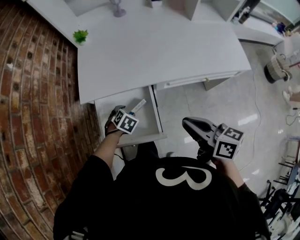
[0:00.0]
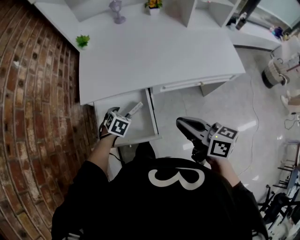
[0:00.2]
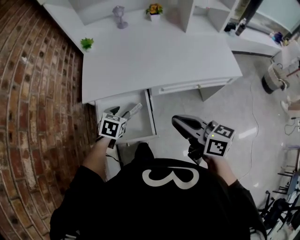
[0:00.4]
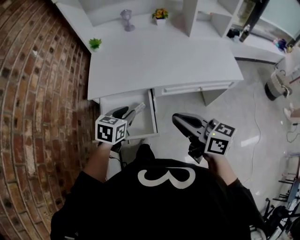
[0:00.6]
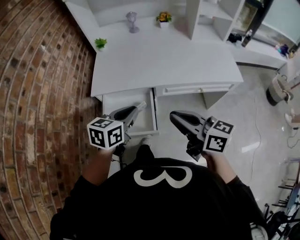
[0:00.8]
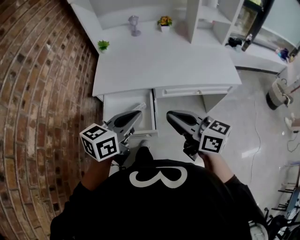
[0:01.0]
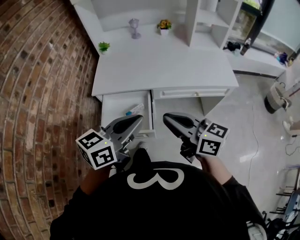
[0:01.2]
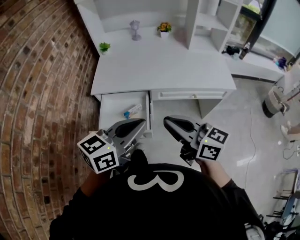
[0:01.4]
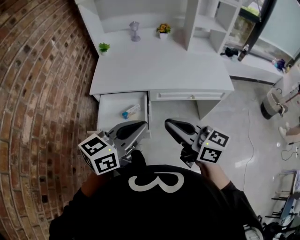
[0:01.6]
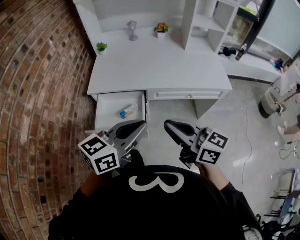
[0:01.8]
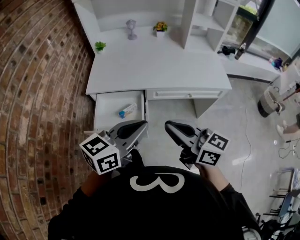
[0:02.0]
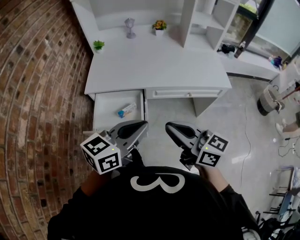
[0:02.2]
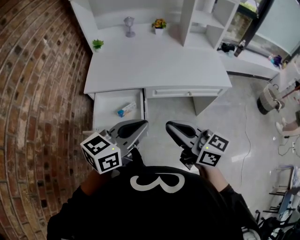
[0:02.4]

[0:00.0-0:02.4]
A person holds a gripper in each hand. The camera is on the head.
0:00.0 to 0:01.2: The right gripper goes roughly 15 cm upward and backward, and swivels some 30 degrees. Meanwhile the left gripper travels upward and backward by about 40 cm, angles its fingers upward, by approximately 60 degrees, and closes its fingers.
0:01.2 to 0:02.4: The grippers make only small movements.

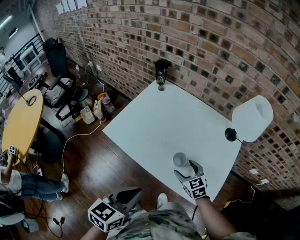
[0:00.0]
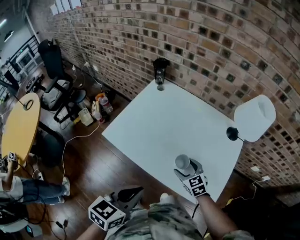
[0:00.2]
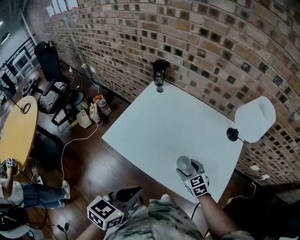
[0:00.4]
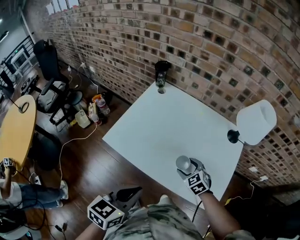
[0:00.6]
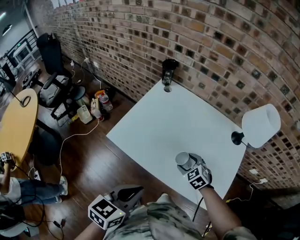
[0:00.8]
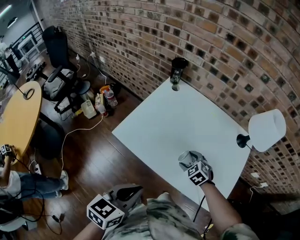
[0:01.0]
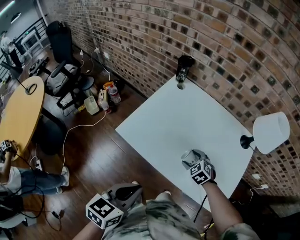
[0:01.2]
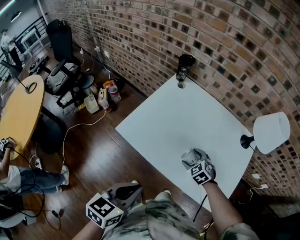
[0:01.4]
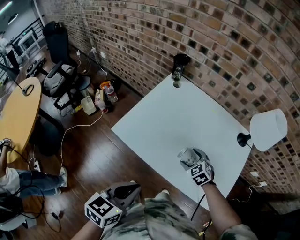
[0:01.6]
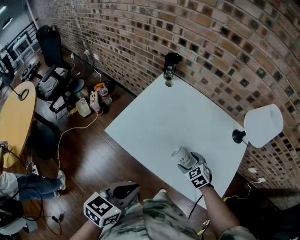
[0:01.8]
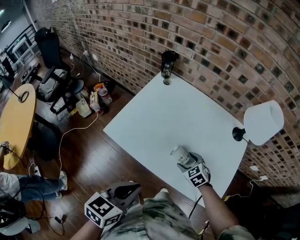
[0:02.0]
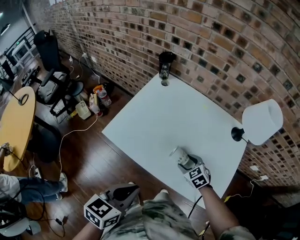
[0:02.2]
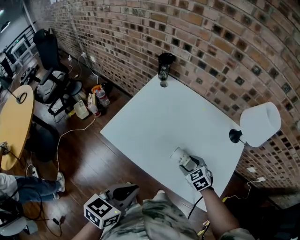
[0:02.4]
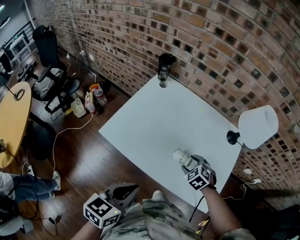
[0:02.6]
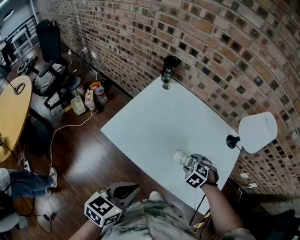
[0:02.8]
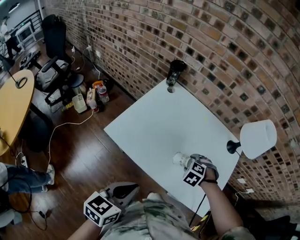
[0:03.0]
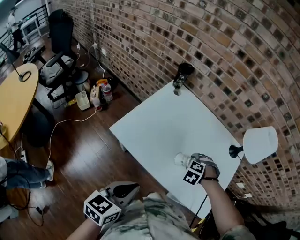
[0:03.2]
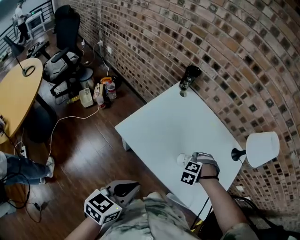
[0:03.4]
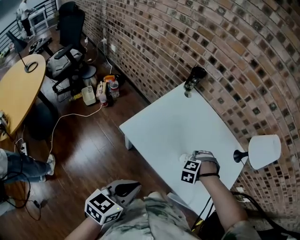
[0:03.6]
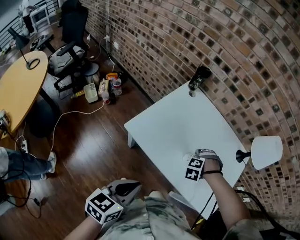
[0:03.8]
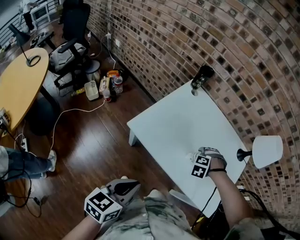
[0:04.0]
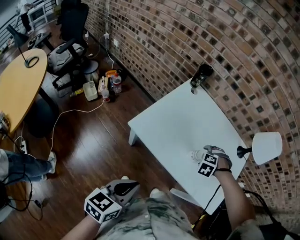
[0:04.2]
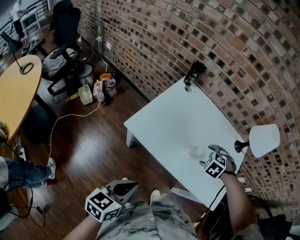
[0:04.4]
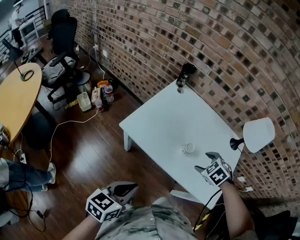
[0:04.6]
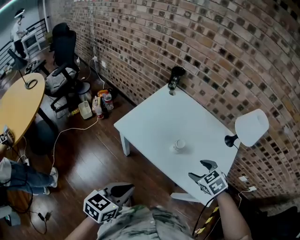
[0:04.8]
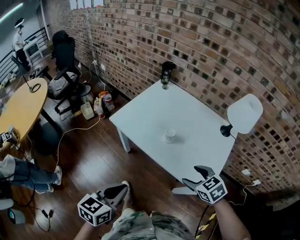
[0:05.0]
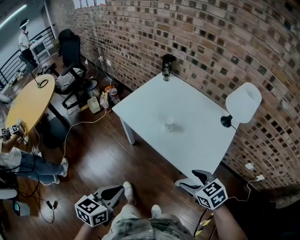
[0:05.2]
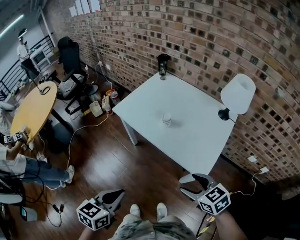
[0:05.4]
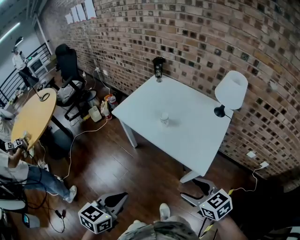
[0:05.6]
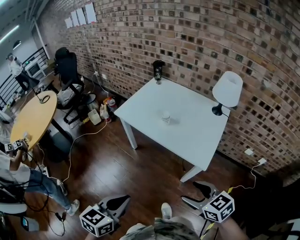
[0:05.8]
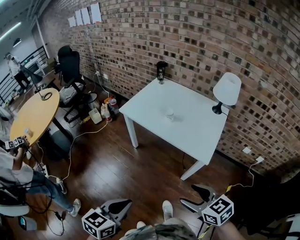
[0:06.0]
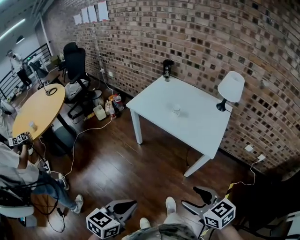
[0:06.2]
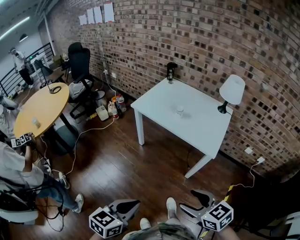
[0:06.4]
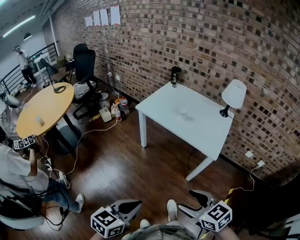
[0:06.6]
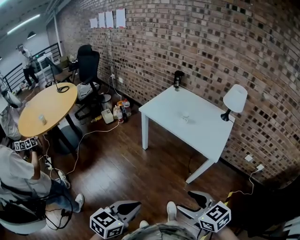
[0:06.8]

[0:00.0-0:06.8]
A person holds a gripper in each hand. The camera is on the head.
0:00.0 to 0:01.4: The right gripper is displaced to the left and forward by some 10 cm, and turns by approximately 30 degrees, while the left gripper moves to the left, about 10 cm.
0:01.4 to 0:02.8: The right gripper moves to the right, some 10 cm, and turns by some 20 degrees.
0:02.8 to 0:04.0: The left gripper moves approximately 15 cm. The right gripper moves some 10 cm, and swivels approximately 40 degrees.
0:04.0 to 0:05.4: The right gripper moves some 40 cm, and tips its fingers upward by approximately 30 degrees, while the left gripper moves some 35 cm.
0:05.4 to 0:06.8: The right gripper is displaced backward, to the left and upward by some 35 cm. The left gripper goes approximately 30 cm backward and to the left.

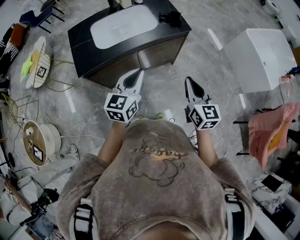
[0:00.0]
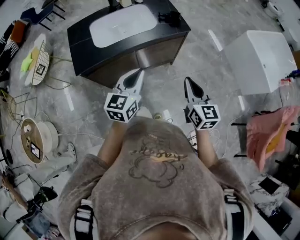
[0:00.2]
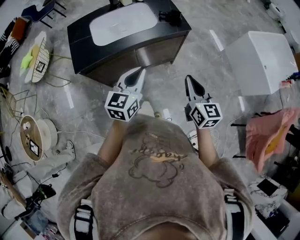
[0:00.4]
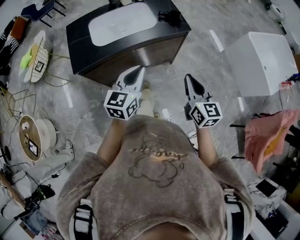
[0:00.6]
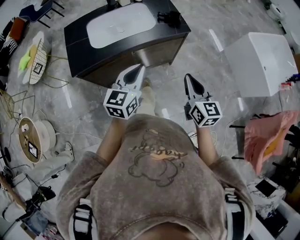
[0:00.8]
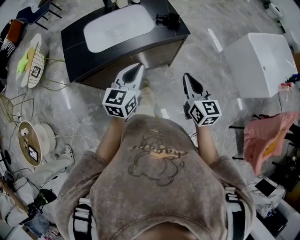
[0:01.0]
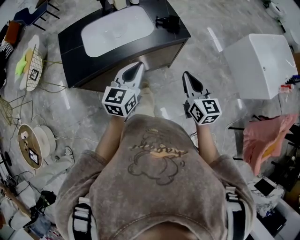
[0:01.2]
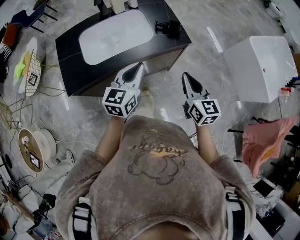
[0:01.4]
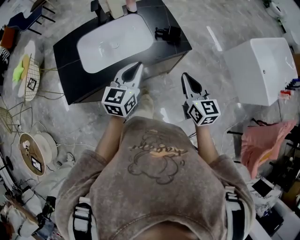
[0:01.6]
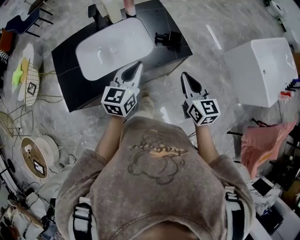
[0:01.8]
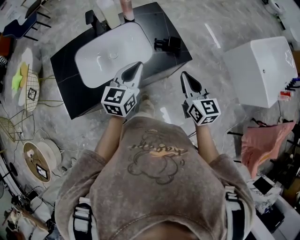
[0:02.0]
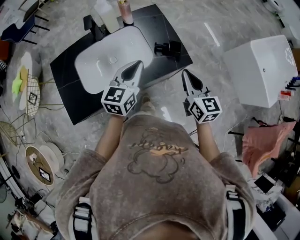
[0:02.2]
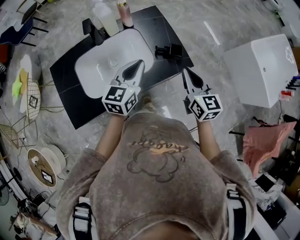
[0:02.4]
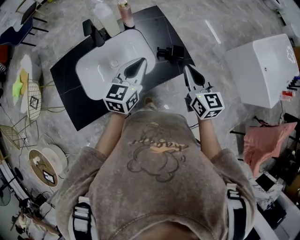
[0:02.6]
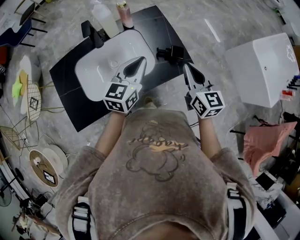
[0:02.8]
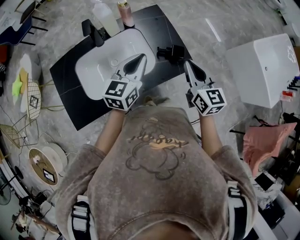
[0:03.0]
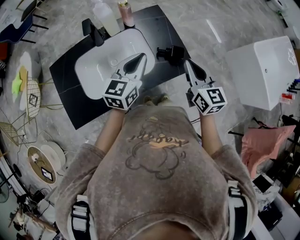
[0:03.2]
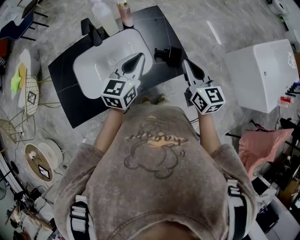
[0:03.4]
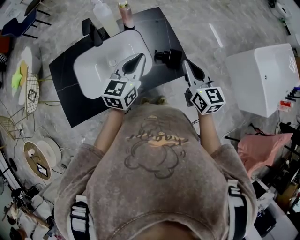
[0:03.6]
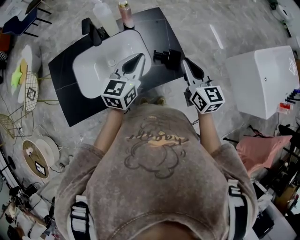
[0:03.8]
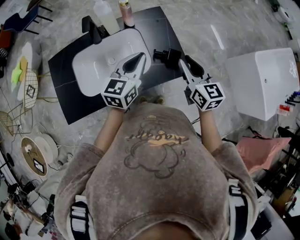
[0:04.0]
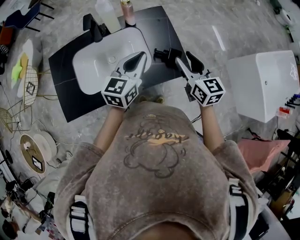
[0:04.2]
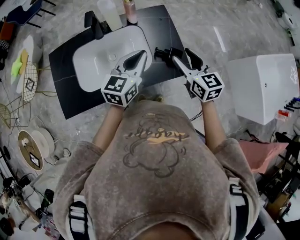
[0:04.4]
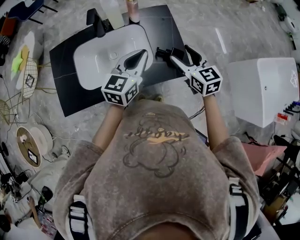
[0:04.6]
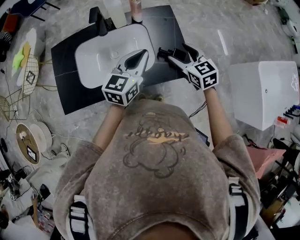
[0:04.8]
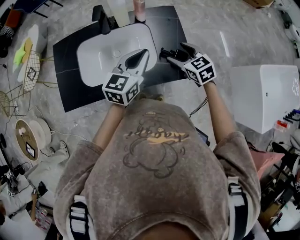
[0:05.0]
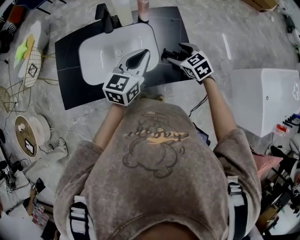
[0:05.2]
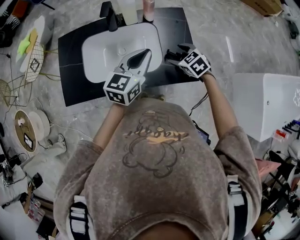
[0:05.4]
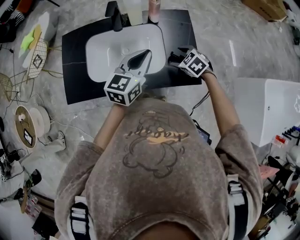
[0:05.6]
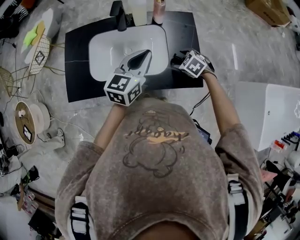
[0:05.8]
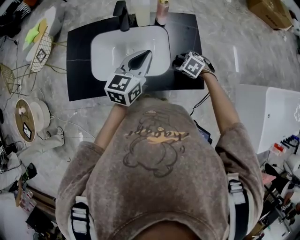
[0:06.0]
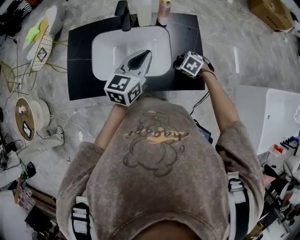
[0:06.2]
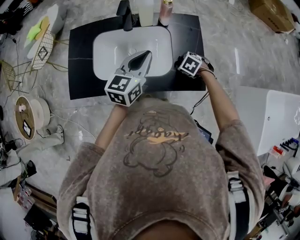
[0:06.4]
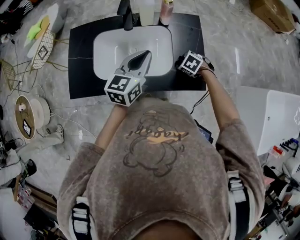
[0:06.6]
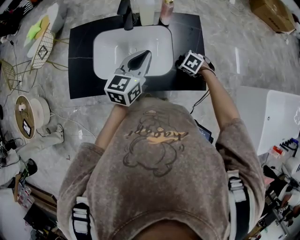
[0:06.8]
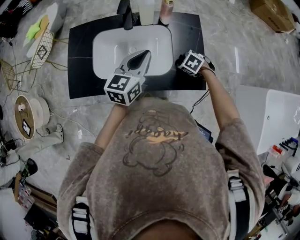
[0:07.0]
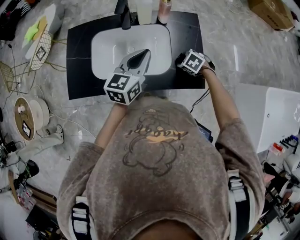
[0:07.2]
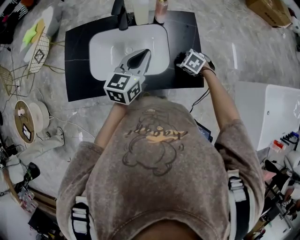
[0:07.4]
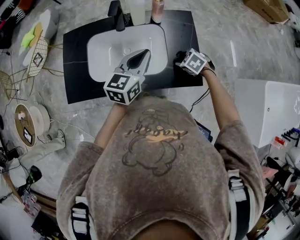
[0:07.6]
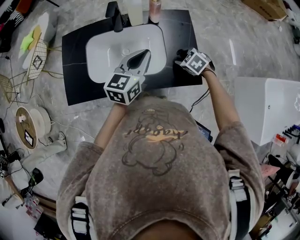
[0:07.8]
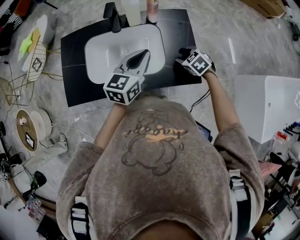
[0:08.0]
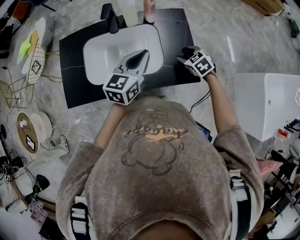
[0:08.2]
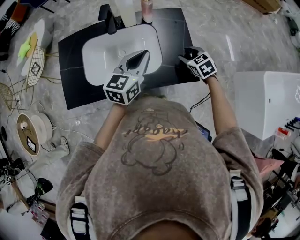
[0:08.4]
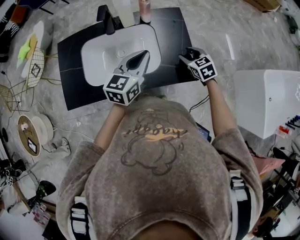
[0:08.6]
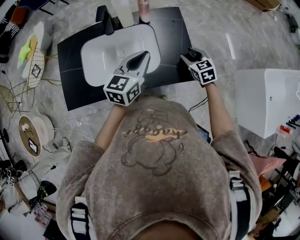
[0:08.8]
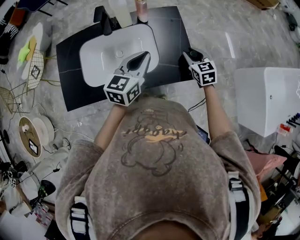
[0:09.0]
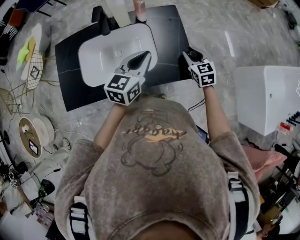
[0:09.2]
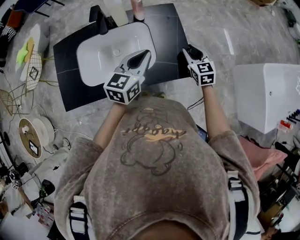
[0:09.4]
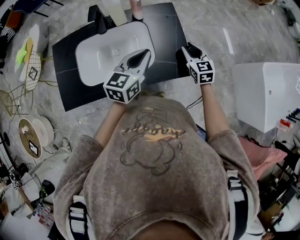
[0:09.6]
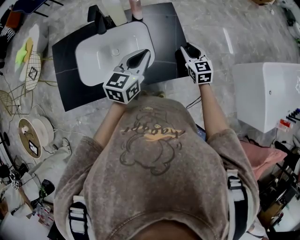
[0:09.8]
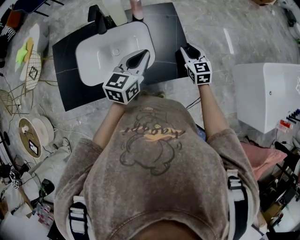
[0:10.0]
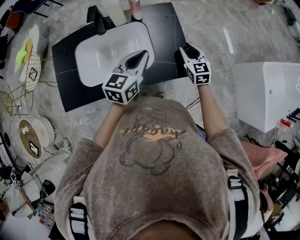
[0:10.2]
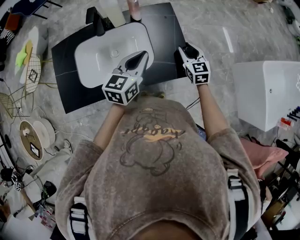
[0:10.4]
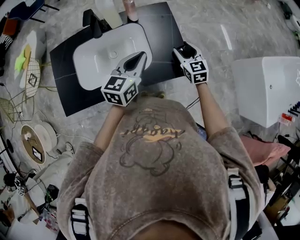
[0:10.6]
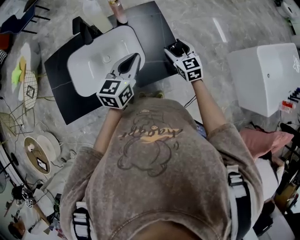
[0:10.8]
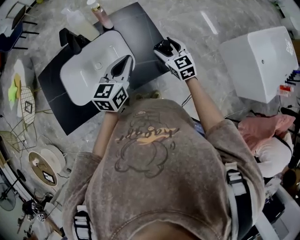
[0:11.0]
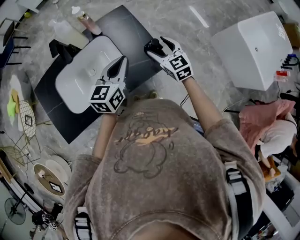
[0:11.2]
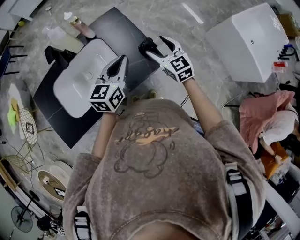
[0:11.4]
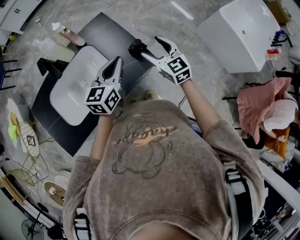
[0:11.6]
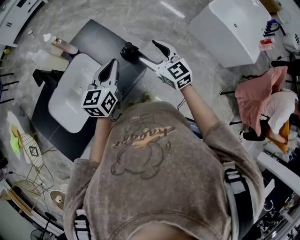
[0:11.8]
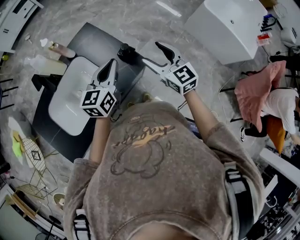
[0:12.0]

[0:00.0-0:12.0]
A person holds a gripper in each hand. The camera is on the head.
0:00.0 to 0:01.6: Both grippers travel together forward, roughly 20 cm.
0:01.6 to 0:03.0: The grippers both shift forward by approximately 20 cm.
0:03.0 to 0:04.4: The right gripper travels forward by about 5 cm, and opens its fingers.
0:04.4 to 0:06.0: The left gripper changes place by roughly 5 cm; the right gripper travels downward by approximately 20 cm, and tips its fingers downward by roughly 50 degrees.
0:06.0 to 0:07.6: The grippers make only small movements.
0:07.6 to 0:09.0: The left gripper moves roughly 5 cm. The right gripper shifts about 10 cm to the right and upward, and tilts its fingers about 30 degrees upward.
0:09.0 to 0:10.4: The grippers stay close to where they were, moving slightly.
0:10.4 to 0:12.0: The right gripper goes some 20 cm backward, upward and to the right, and opens up; the left gripper shifts about 10 cm to the right, and rotates some 20 degrees.

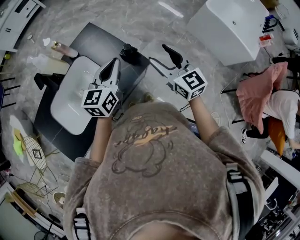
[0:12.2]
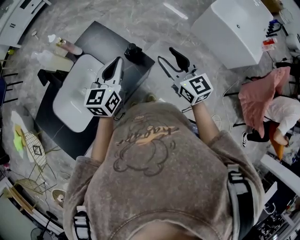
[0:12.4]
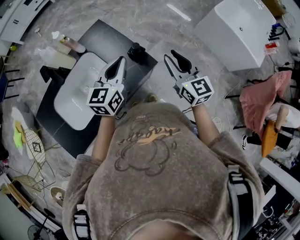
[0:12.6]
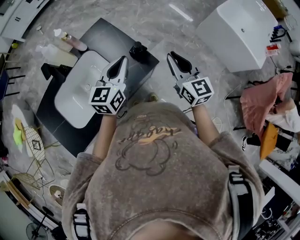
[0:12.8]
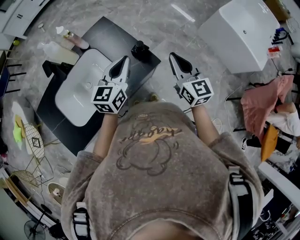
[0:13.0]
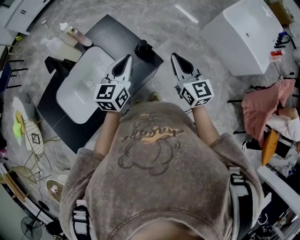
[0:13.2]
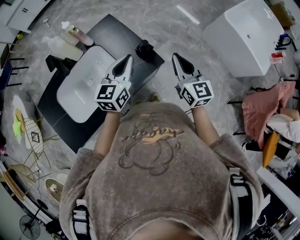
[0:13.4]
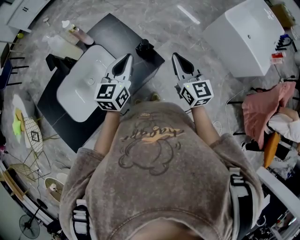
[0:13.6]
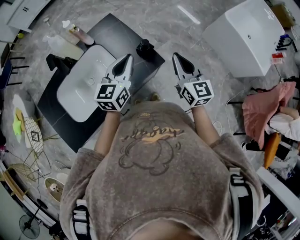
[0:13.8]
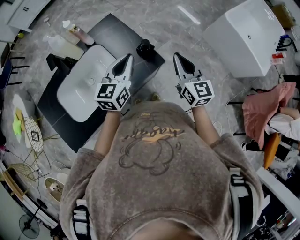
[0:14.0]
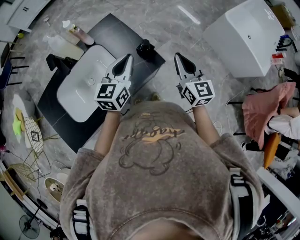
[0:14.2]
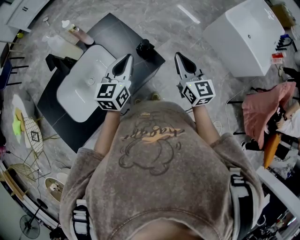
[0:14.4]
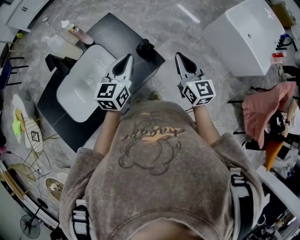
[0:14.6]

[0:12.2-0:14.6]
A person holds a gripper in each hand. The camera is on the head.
0:12.2 to 0:13.4: The right gripper closes up.
0:13.4 to 0:14.6: There are only small adjustments of the grippers.
